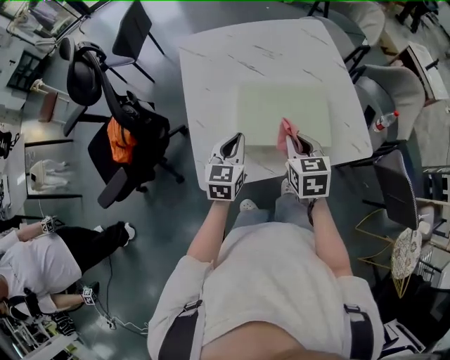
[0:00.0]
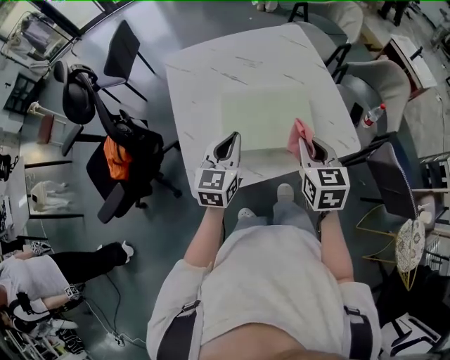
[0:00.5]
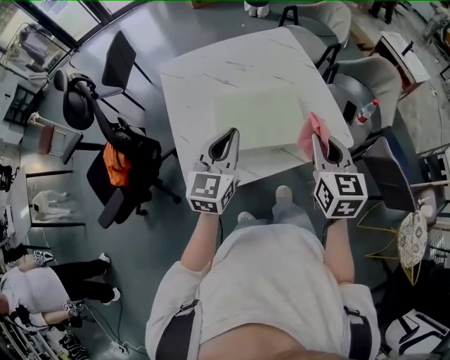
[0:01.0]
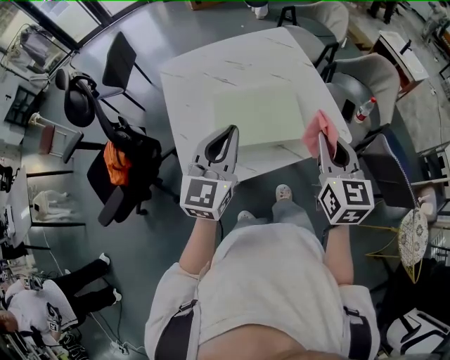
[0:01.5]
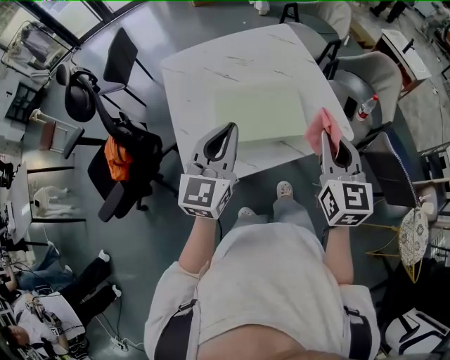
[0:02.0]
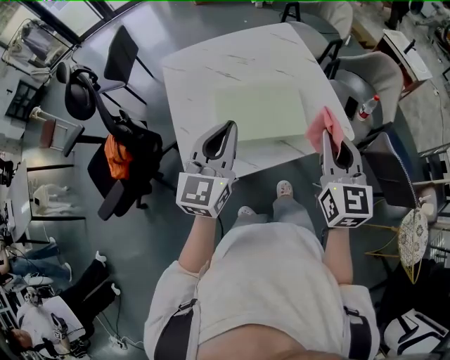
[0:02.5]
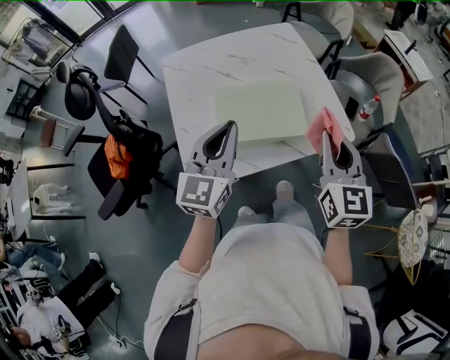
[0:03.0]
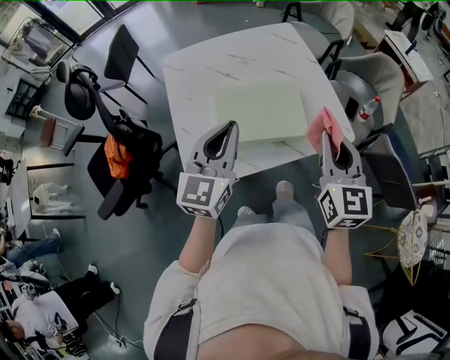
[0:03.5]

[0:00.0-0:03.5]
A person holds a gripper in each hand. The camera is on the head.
0.0 to 2.0 s: Both grippers travel together upward and to the right, roughly 20 cm. The left gripper turns by roughly 20 degrees. The right gripper turns by about 30 degrees.
2.0 to 3.5 s: The two grippers keep their place.

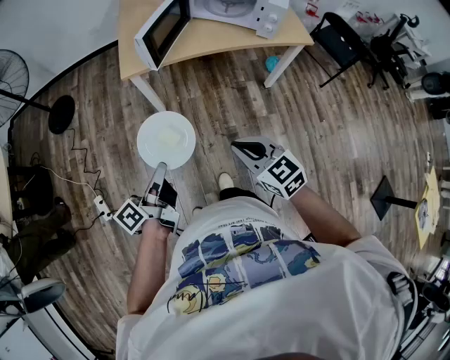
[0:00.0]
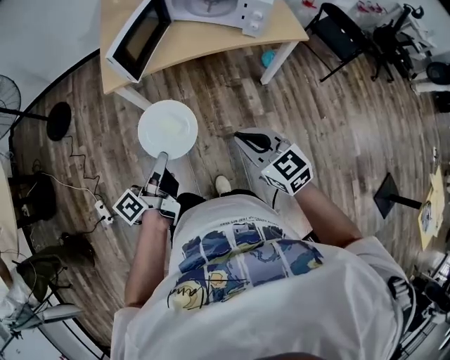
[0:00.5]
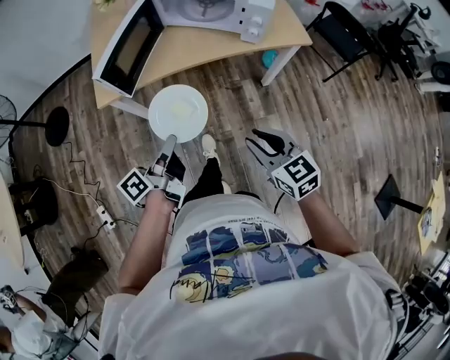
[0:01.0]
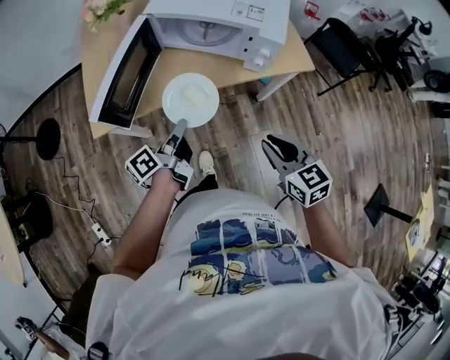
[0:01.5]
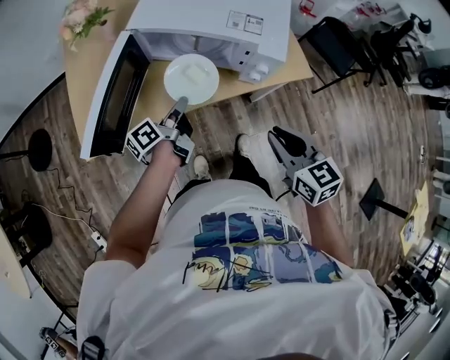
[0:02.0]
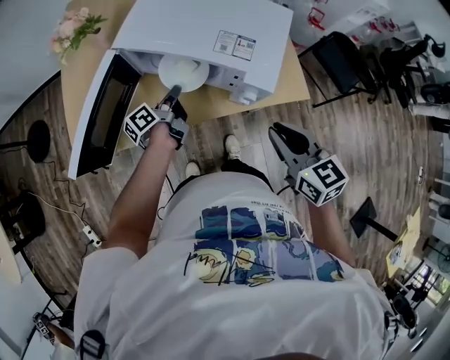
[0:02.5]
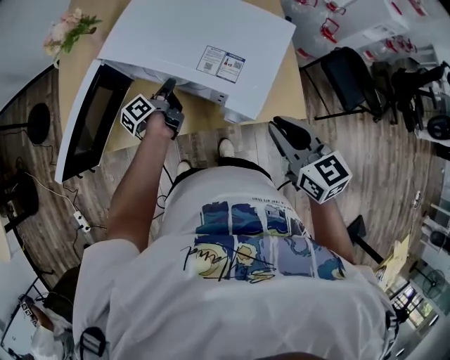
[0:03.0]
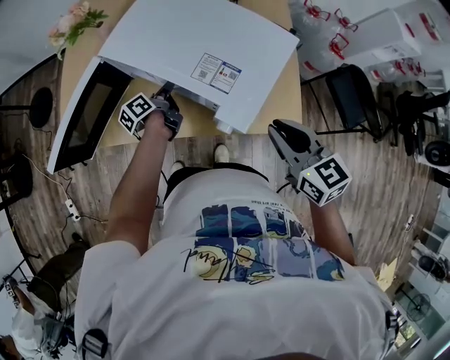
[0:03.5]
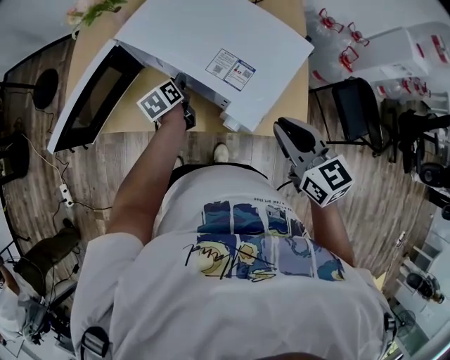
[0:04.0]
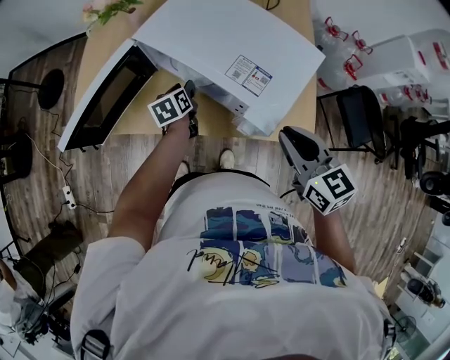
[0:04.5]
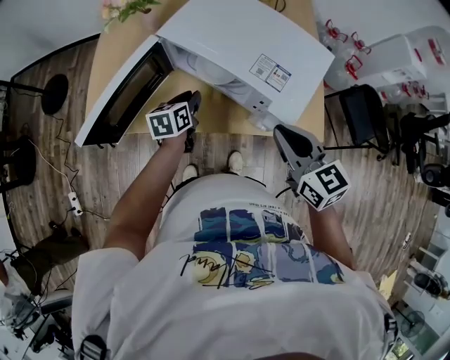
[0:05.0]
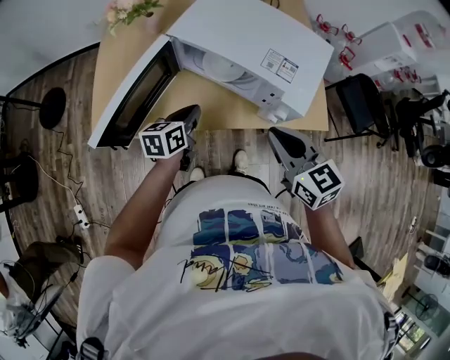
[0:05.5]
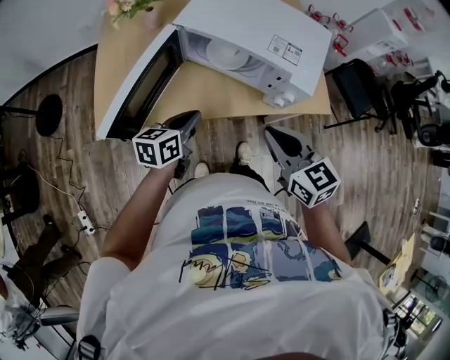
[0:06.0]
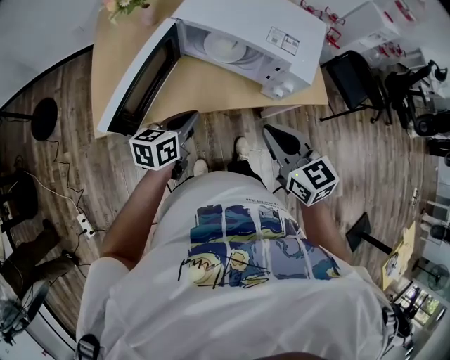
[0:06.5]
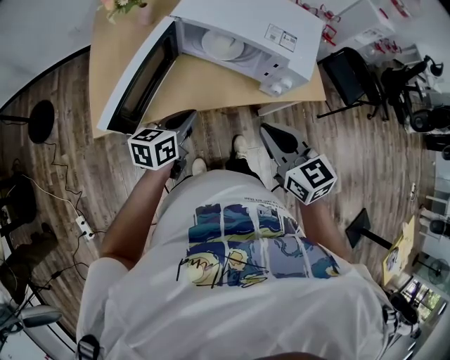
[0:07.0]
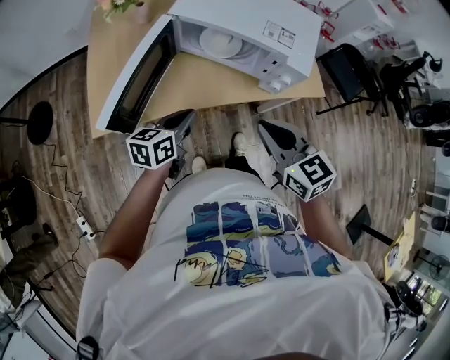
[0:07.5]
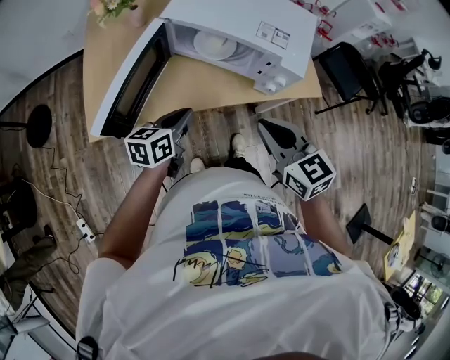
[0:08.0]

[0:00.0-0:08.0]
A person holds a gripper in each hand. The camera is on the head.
0.0 to 2.0 s: Both grippers are carried forward and to the right, about 50 cm. The right gripper swivels some 30 degrees.
2.0 to 4.0 s: The left gripper shifts by approximately 20 cm, swivels approximately 50 degrees, and opens its fingers; the right gripper moves some 25 cm, and changes its angle by approximately 20 degrees.
4.0 to 6.0 s: The right gripper moves roughly 25 cm. Meanwhile the left gripper shifts by some 25 cm, changes its angle by approximately 50 degrees, and closes its fingers.
6.0 to 8.0 s: The grippers make only small movements.

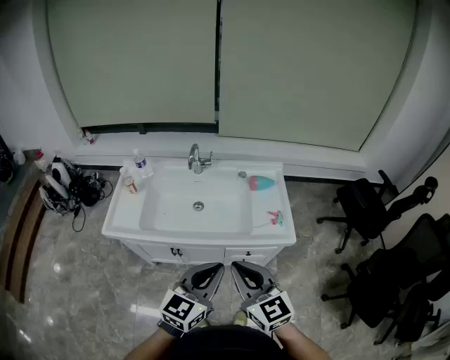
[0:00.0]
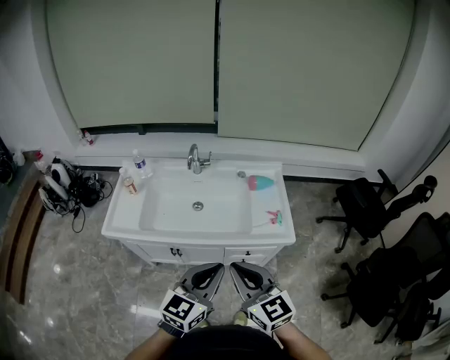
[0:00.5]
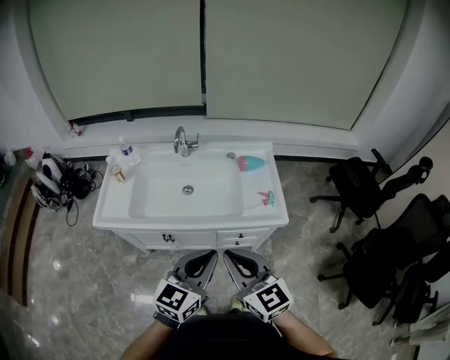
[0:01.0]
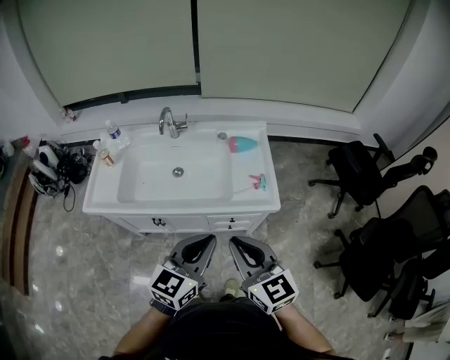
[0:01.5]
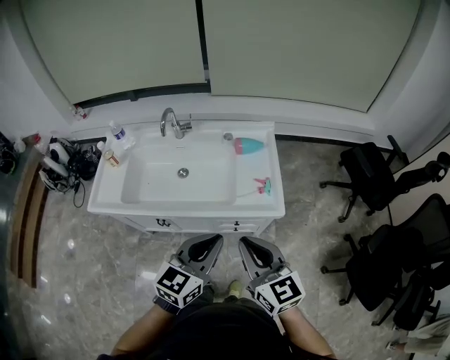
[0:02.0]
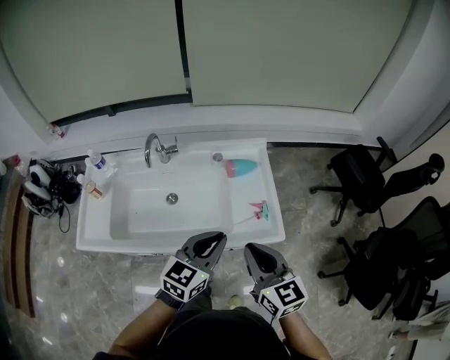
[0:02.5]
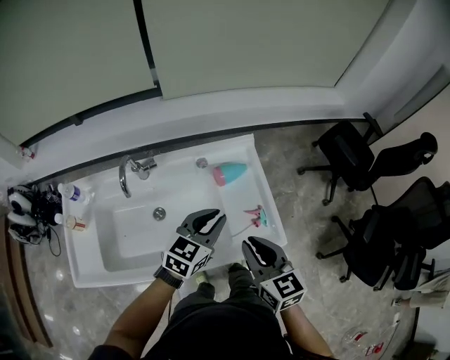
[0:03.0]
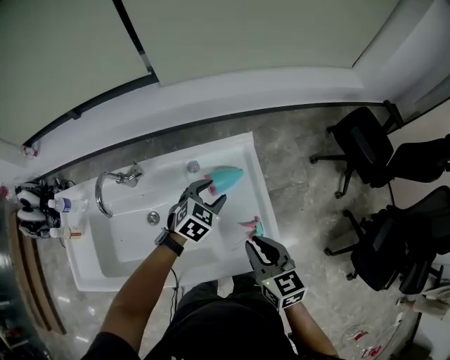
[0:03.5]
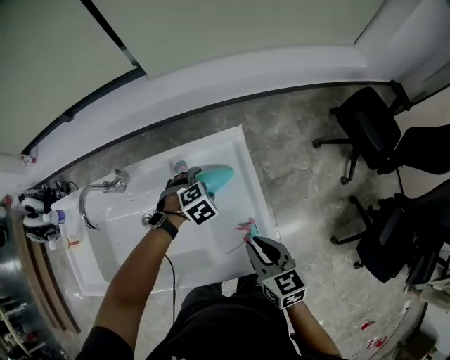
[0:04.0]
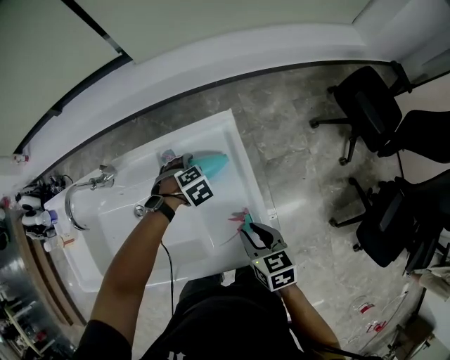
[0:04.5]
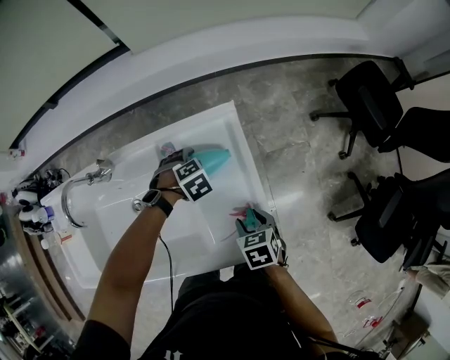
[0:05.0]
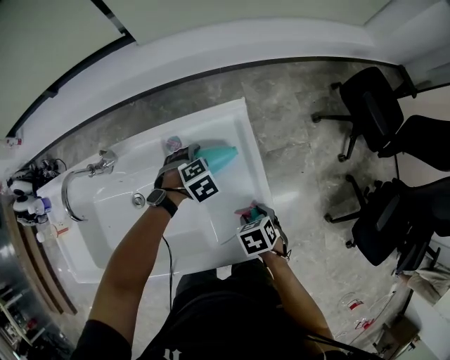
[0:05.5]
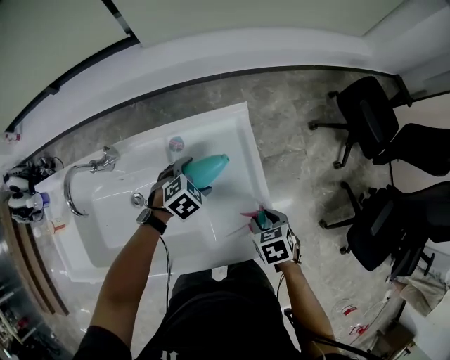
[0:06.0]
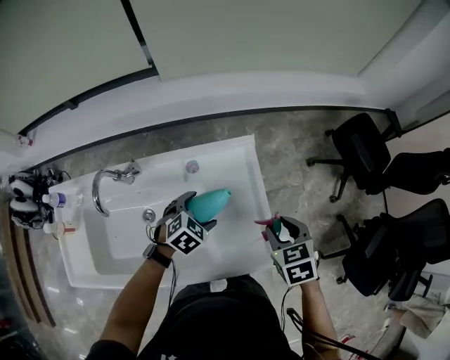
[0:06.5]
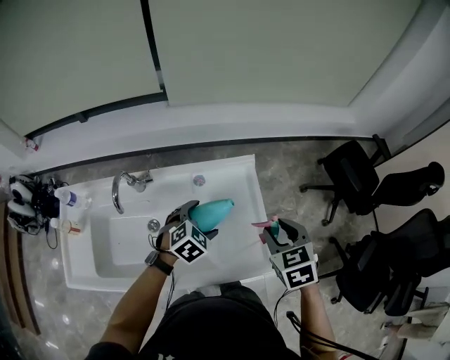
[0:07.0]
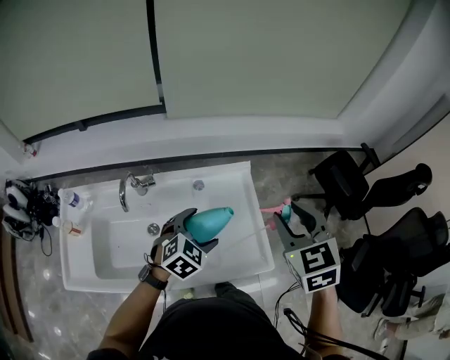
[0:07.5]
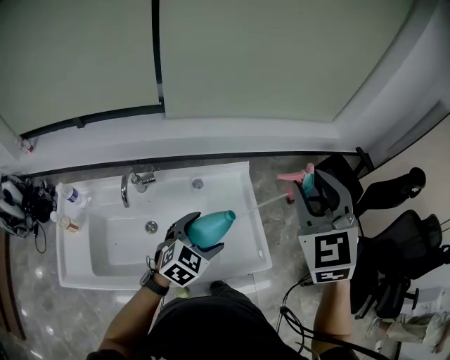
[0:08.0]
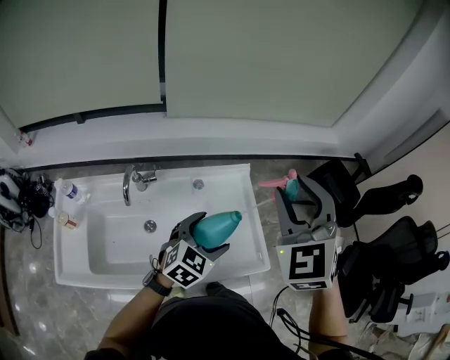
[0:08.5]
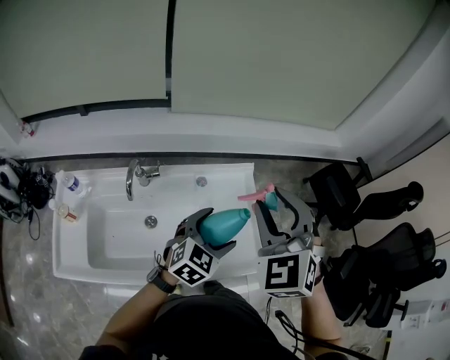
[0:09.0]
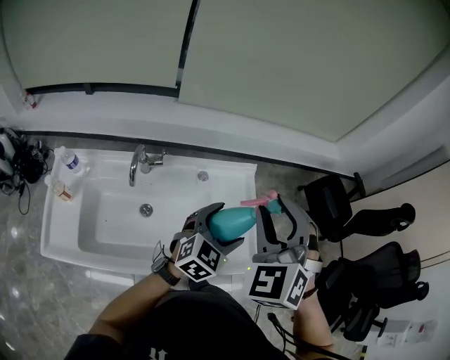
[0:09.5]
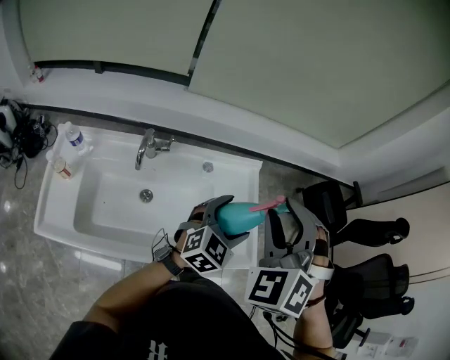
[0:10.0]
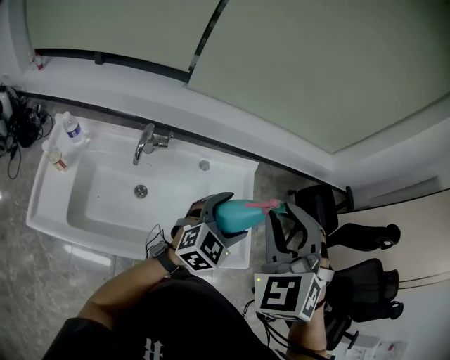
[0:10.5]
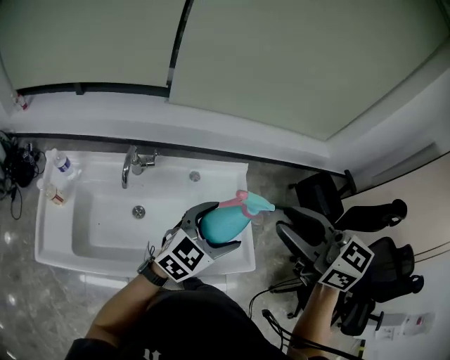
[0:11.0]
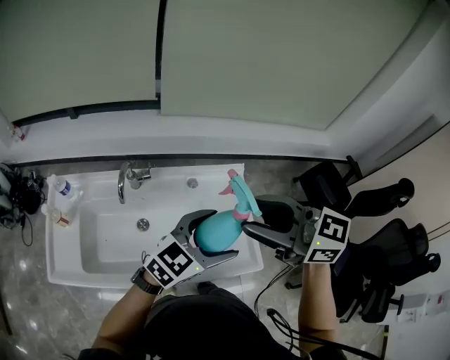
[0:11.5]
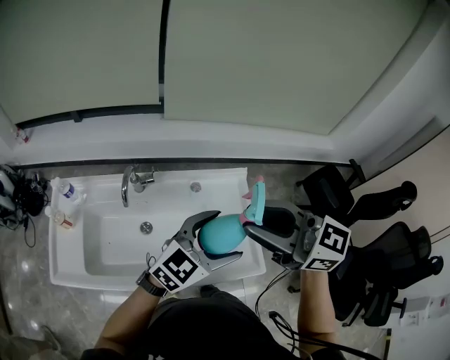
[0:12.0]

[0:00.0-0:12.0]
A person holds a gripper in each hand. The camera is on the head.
0.0 to 2.0 s: The left gripper travels to the right and forward by roughly 15 cm. Meanwhile the right gripper moves to the right, approximately 15 cm.
2.0 to 4.0 s: The left gripper goes about 60 cm forward and downward, points its fingers some 60 degrees further downward, and opens its fingers; the right gripper heads forward and downward, covering about 40 cm, and swivels some 30 degrees.
4.0 to 6.0 s: The right gripper travels downward by approximately 10 cm, angles its fingers downward, by roughly 40 degrees, and opens its fingers.
6.0 to 8.0 s: The left gripper is displaced upward and backward by roughly 30 cm, and tilts its fingers approximately 30 degrees upward; the right gripper travels upward by some 50 cm, and points its fingers some 50 degrees further upward.
8.0 to 10.0 s: The right gripper goes some 15 cm to the left, backward and downward, and changes its angle by approximately 30 degrees.
10.0 to 12.0 s: The right gripper turns by roughly 90 degrees. Meanwhile the left gripper heads upward, covering about 10 cm.

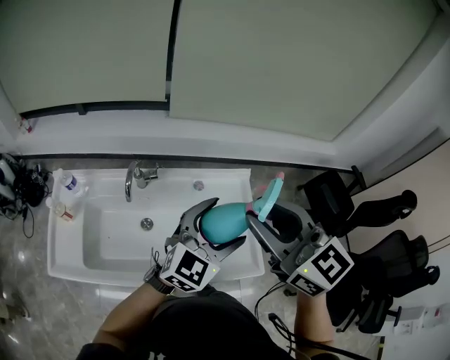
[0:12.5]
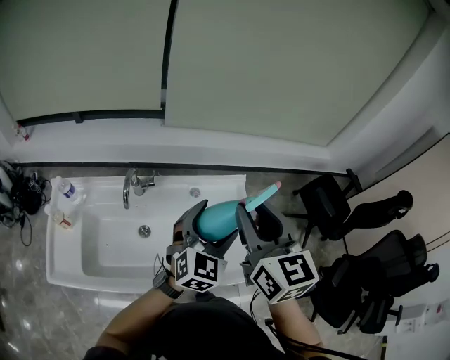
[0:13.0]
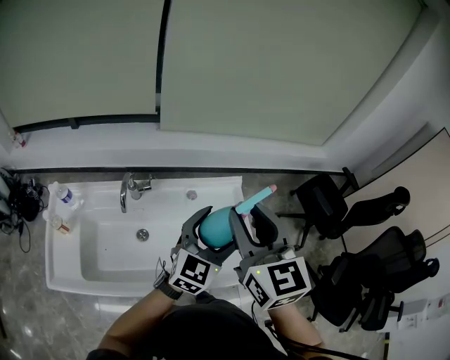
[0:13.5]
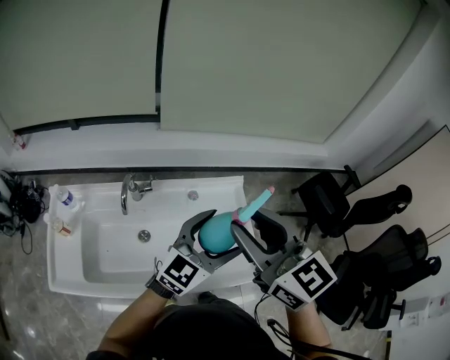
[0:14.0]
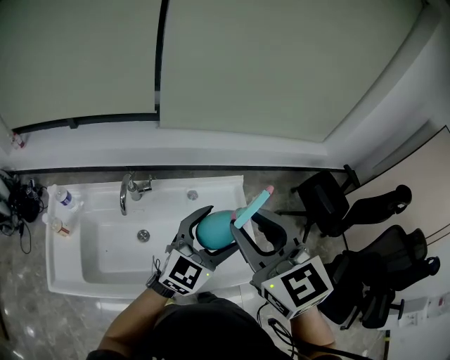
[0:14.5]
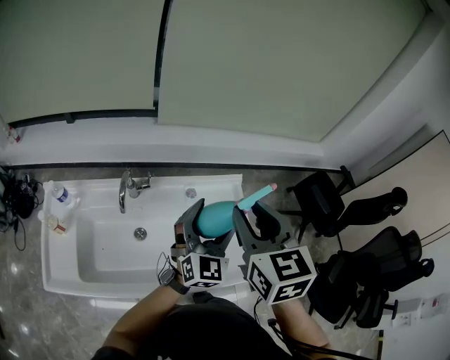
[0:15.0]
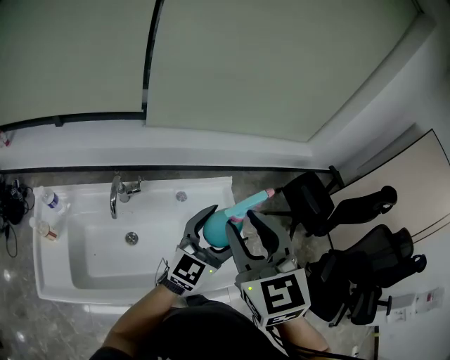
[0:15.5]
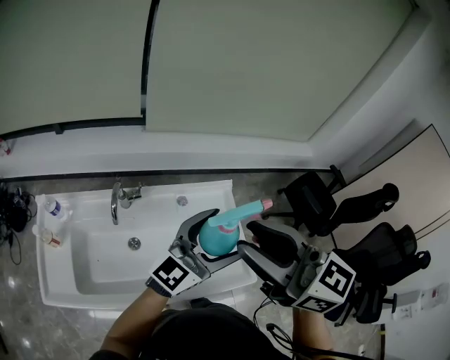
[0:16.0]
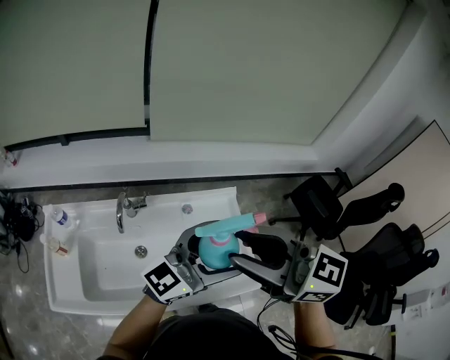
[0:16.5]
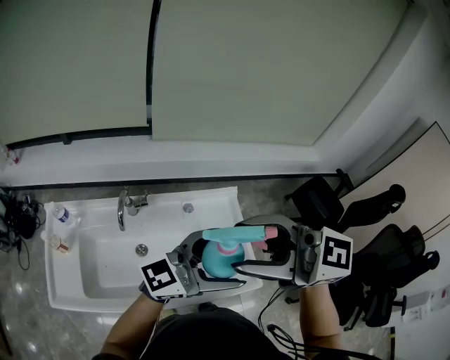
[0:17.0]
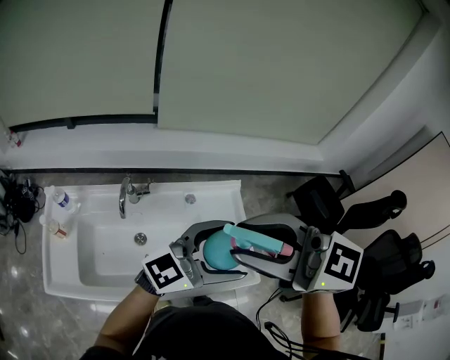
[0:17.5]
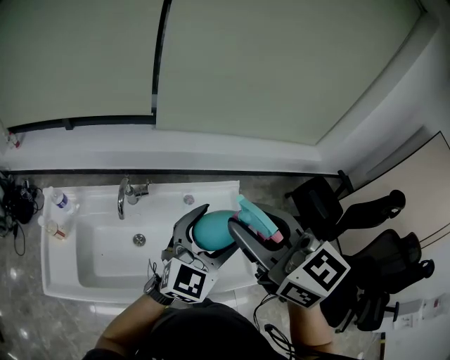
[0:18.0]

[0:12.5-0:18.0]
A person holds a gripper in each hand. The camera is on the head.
14.5 to 16.0 s: The right gripper turns by about 30 degrees; the left gripper goes about 5 cm upward, and changes its angle by some 30 degrees.
16.0 to 18.0 s: The left gripper rotates roughly 30 degrees.
